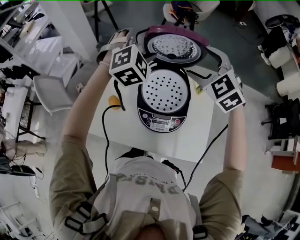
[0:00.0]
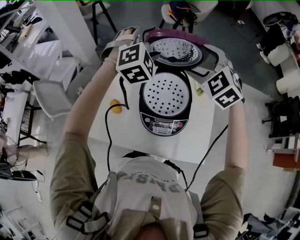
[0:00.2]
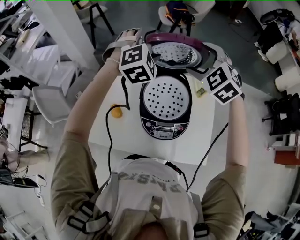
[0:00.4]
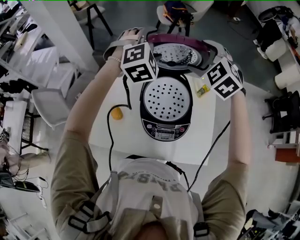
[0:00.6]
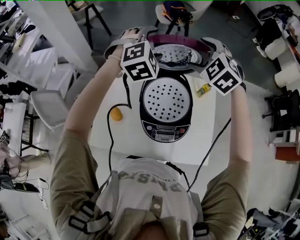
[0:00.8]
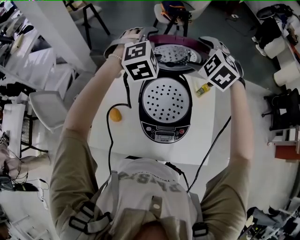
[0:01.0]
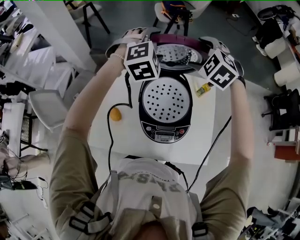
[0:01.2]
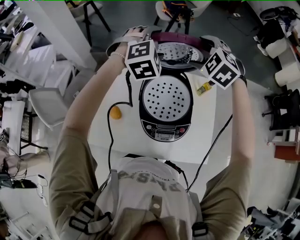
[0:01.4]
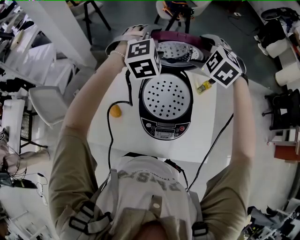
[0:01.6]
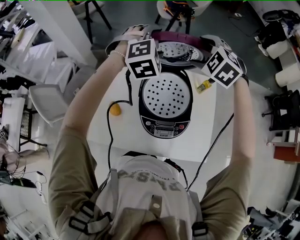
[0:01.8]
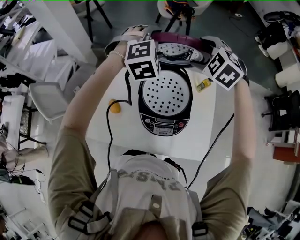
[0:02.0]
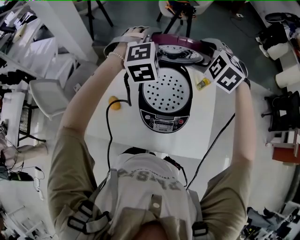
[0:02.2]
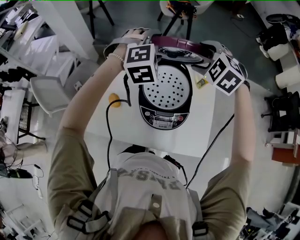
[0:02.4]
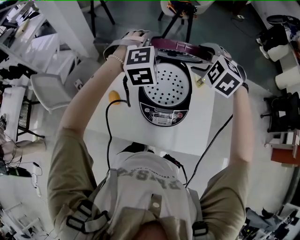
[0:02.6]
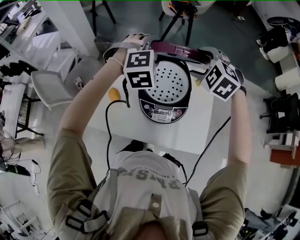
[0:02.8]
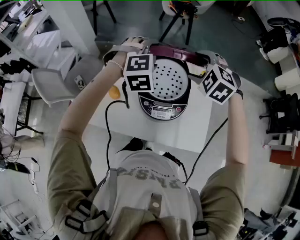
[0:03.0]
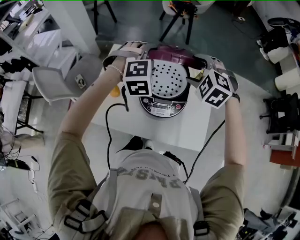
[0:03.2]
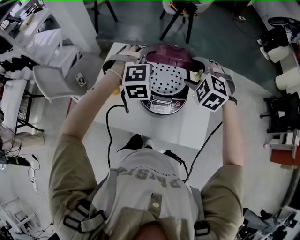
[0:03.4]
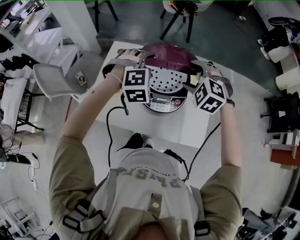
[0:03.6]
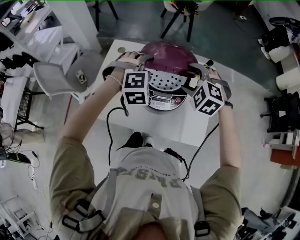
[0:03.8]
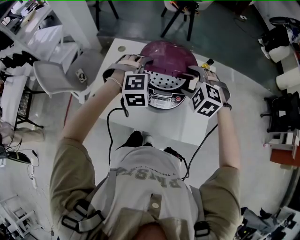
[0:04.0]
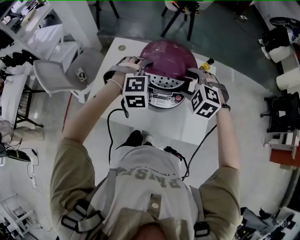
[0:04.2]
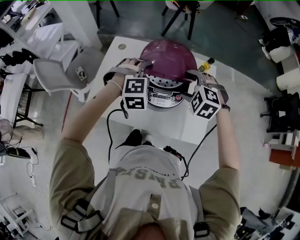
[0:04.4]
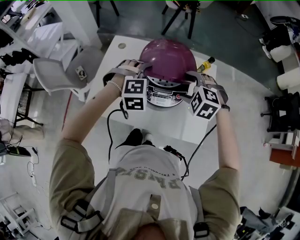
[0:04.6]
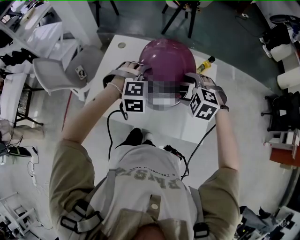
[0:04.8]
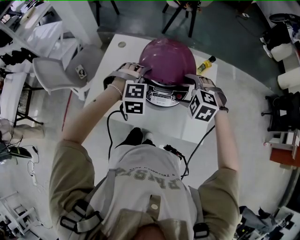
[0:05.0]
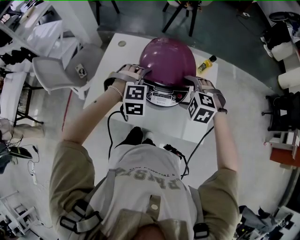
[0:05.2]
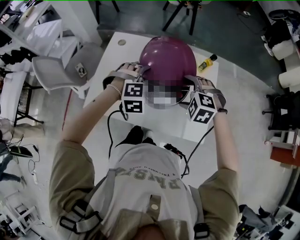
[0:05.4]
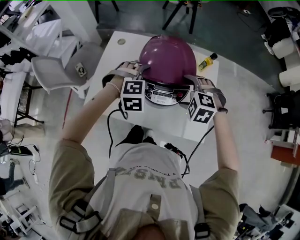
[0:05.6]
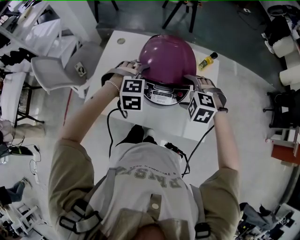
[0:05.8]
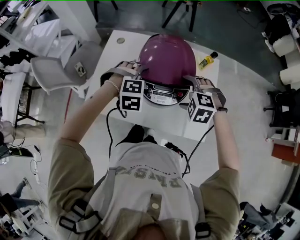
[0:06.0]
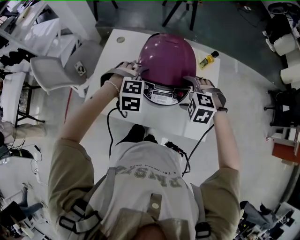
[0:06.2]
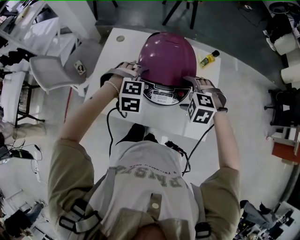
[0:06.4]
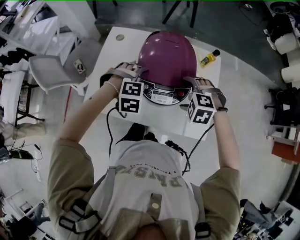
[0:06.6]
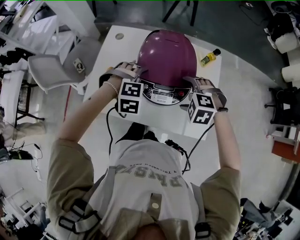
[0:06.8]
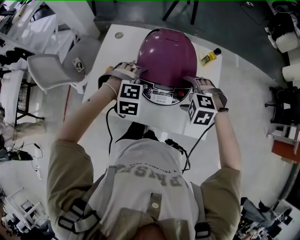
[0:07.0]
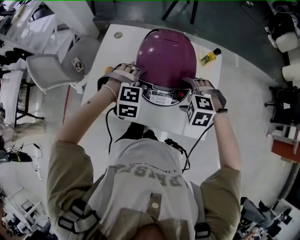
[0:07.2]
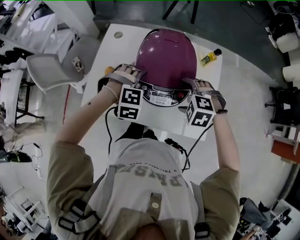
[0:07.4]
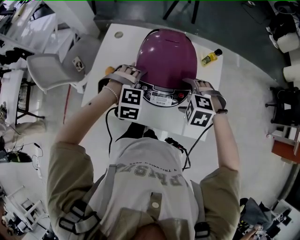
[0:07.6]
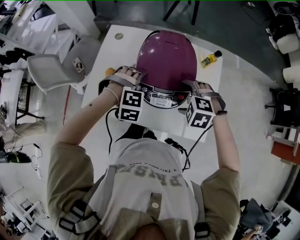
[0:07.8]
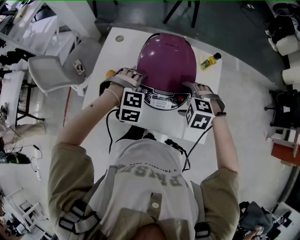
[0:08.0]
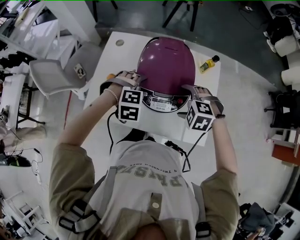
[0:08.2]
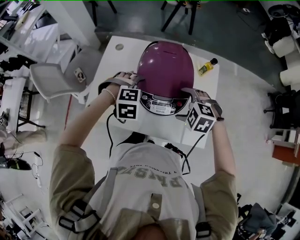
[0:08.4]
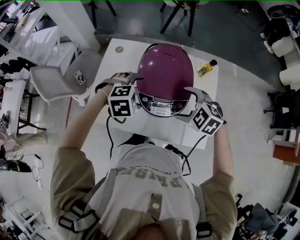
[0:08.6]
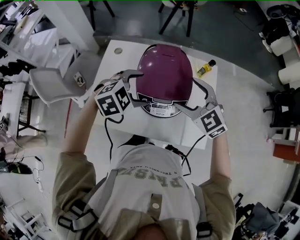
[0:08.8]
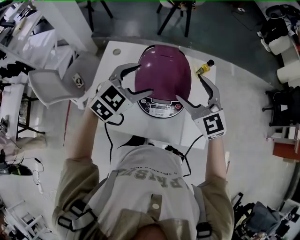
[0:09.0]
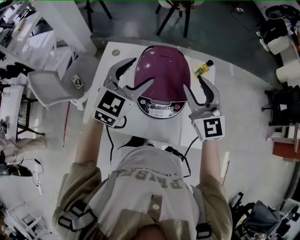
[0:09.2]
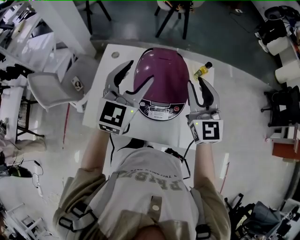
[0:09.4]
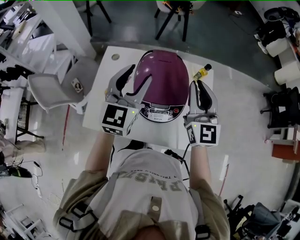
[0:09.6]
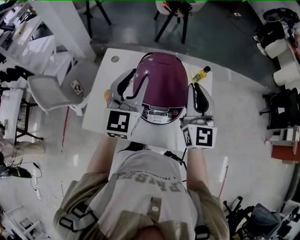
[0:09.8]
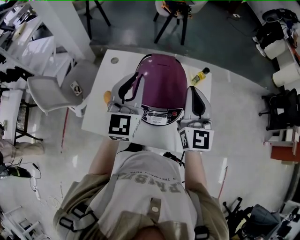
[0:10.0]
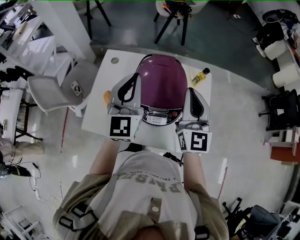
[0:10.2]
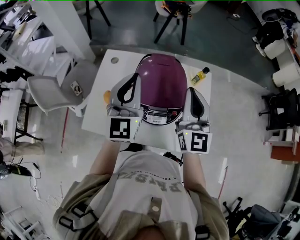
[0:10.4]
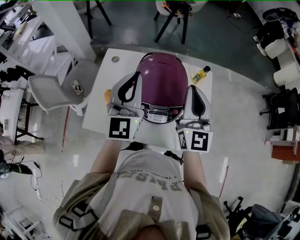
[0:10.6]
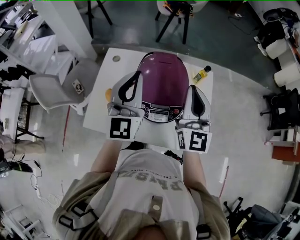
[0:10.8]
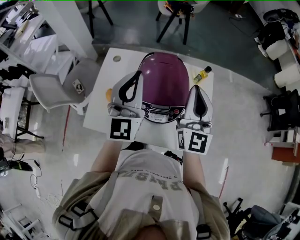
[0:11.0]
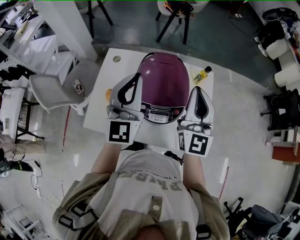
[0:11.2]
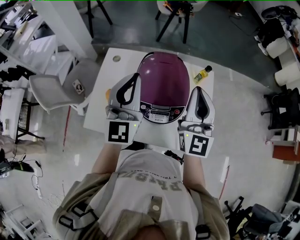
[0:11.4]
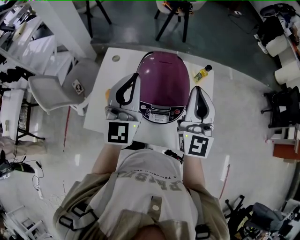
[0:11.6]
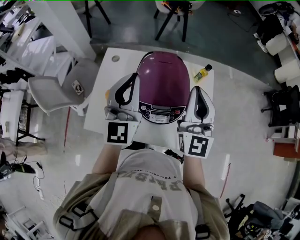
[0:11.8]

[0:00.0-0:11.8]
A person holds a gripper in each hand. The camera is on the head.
0:00.0 to 0:01.4: The two grippers go about 10 cm forward.
0:01.4 to 0:03.0: Both grippers travel together backward, approximately 15 cm.
0:03.0 to 0:04.4: The left gripper goes some 15 cm downward and backward. The right gripper heads backward and downward, covering roughly 15 cm.
0:04.4 to 0:06.0: The two grippers go approximately 5 cm downward.
0:06.0 to 0:07.4: The grippers move only a little.
0:07.4 to 0:08.8: The right gripper travels upward and forward by about 15 cm, and points its fingers approximately 40 degrees further upward, while the left gripper goes approximately 10 cm upward, and turns by approximately 40 degrees.
0:08.8 to 0:10.4: The grippers both shift upward by some 15 cm. The right gripper angles its fingers upward, by some 40 degrees, and closes its fingers. The left gripper angles its fingers upward, by roughly 60 degrees, and closes up.
0:10.4 to 0:11.8: The grippers make only small movements.

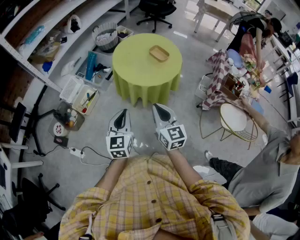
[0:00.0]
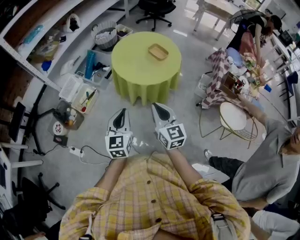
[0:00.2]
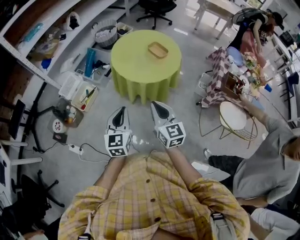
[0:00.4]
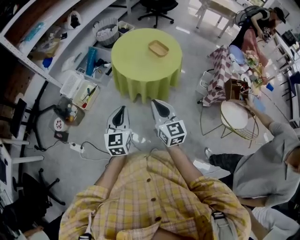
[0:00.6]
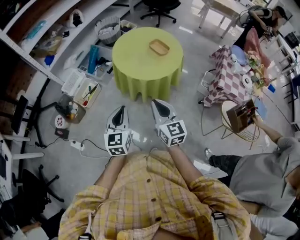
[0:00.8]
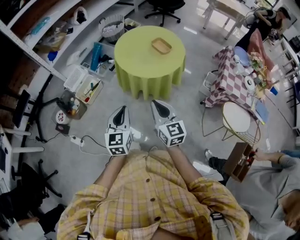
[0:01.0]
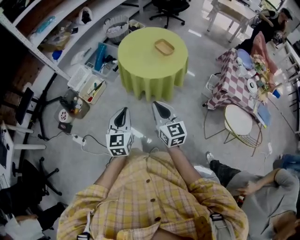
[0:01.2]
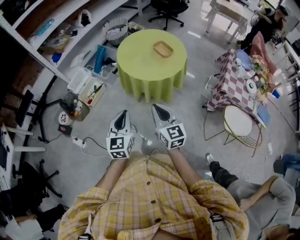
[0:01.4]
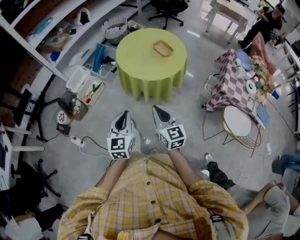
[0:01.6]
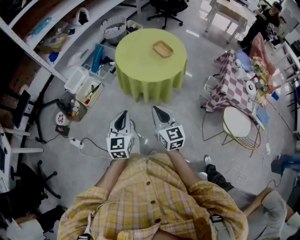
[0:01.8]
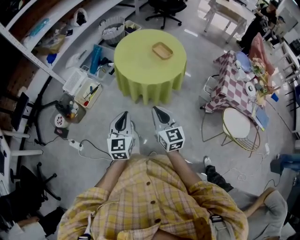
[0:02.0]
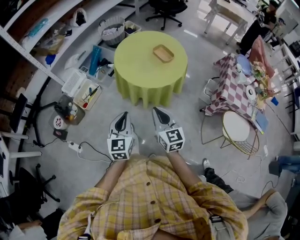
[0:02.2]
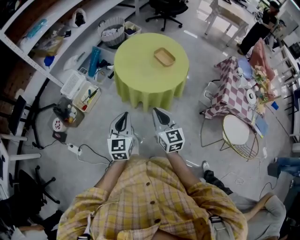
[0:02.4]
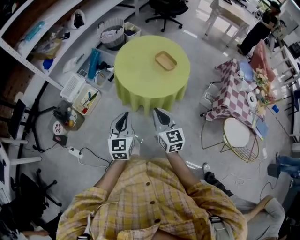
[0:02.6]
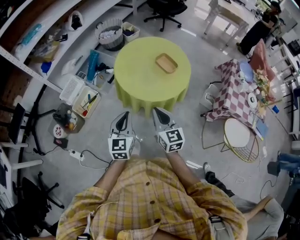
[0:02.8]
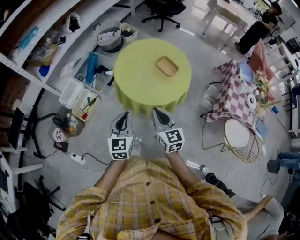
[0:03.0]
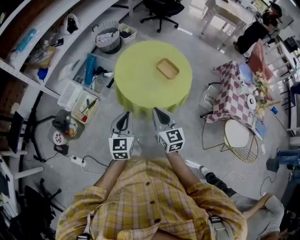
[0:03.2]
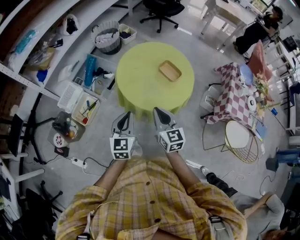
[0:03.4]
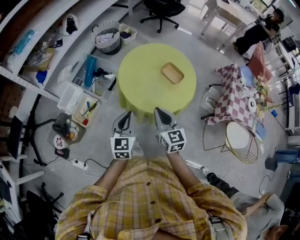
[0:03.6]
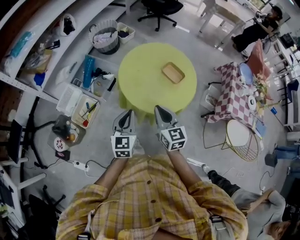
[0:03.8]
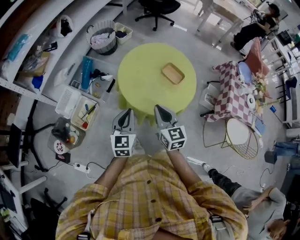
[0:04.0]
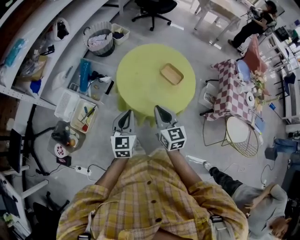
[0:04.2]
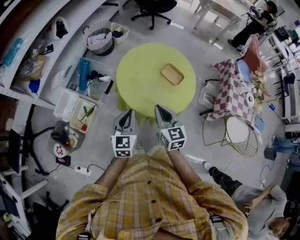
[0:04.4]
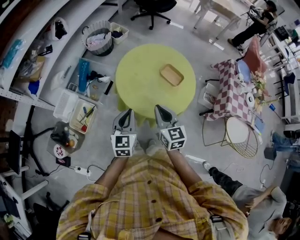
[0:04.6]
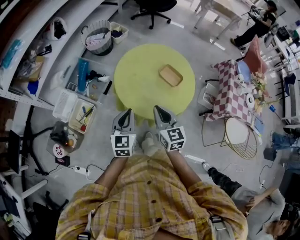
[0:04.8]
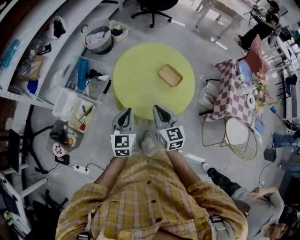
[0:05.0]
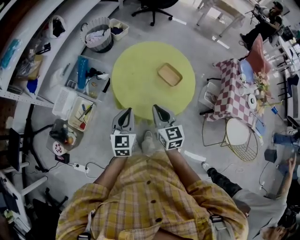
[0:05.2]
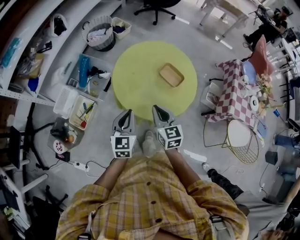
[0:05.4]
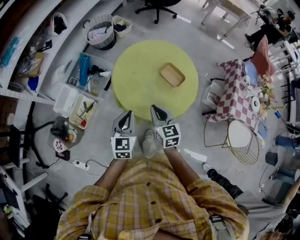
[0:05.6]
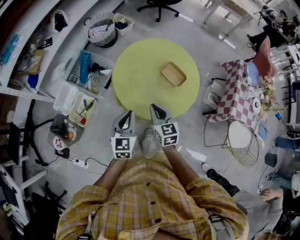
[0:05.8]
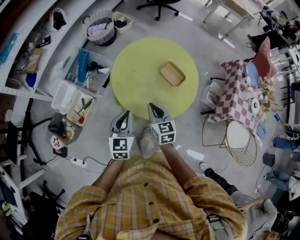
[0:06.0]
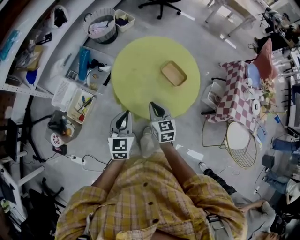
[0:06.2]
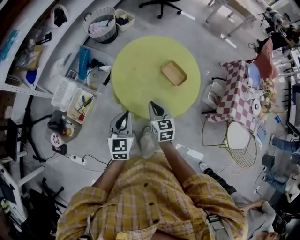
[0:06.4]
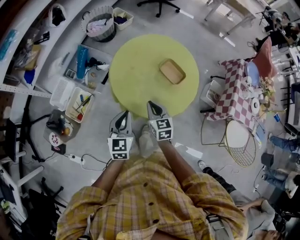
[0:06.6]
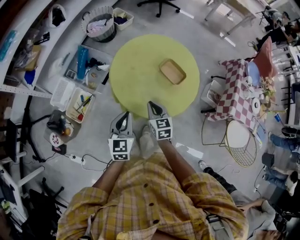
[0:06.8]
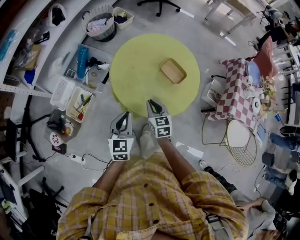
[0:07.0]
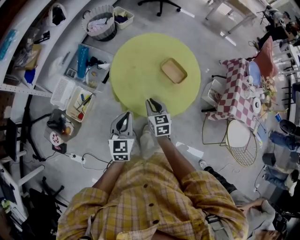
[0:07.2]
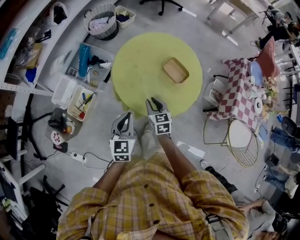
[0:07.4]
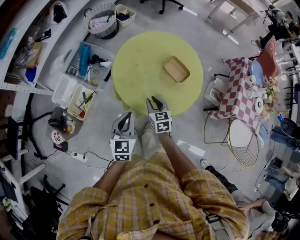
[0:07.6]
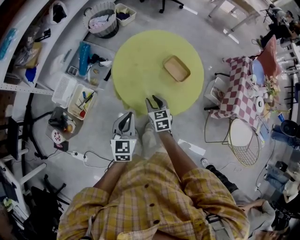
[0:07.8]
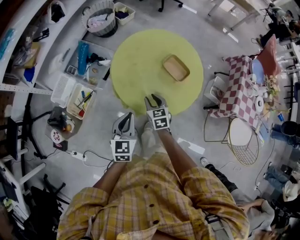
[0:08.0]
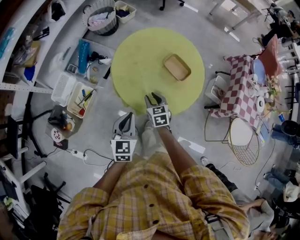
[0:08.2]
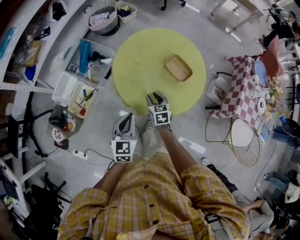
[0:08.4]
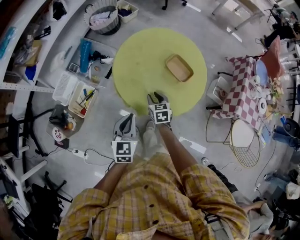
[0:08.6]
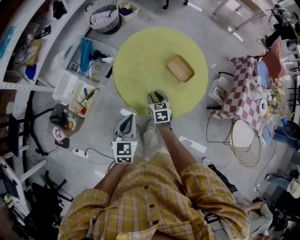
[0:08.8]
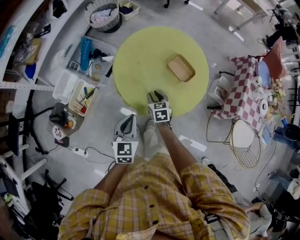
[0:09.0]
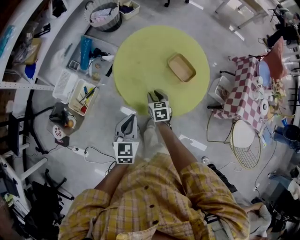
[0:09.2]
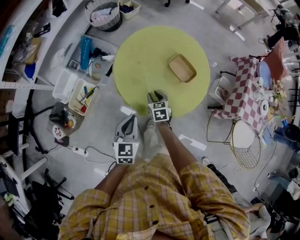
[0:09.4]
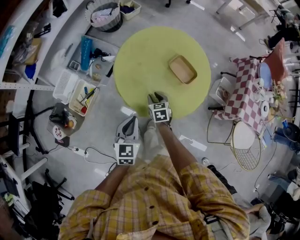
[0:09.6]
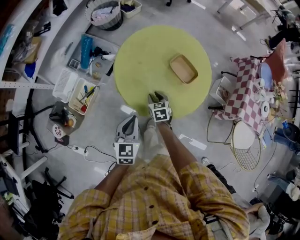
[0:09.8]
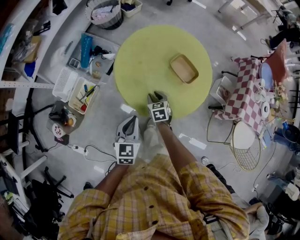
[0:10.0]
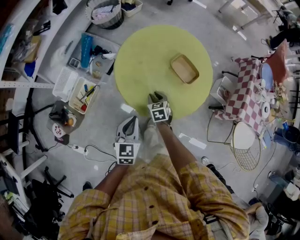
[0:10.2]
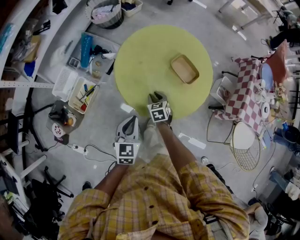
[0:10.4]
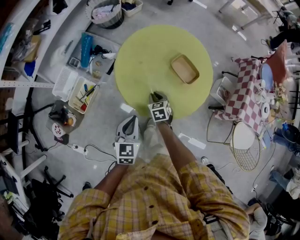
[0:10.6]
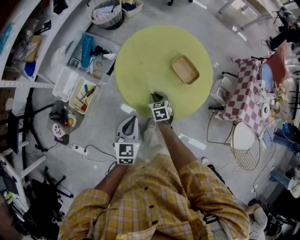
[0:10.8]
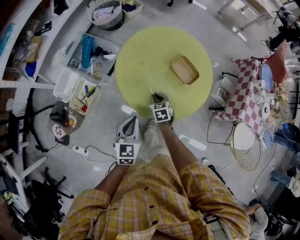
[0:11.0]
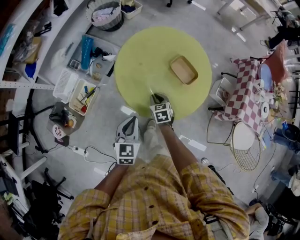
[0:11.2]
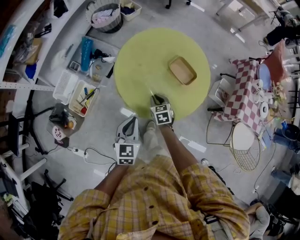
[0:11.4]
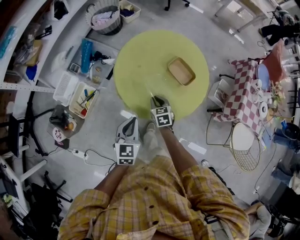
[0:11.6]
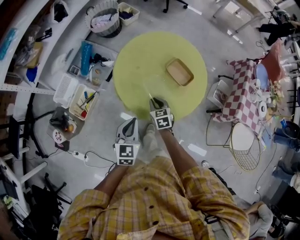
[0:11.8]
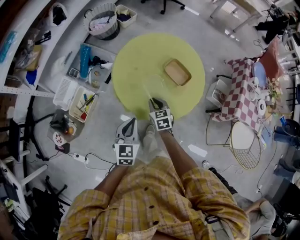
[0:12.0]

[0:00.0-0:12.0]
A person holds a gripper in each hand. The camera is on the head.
0:00.0 to 0:01.6: The right gripper ends up approximately 5 cm from where it was. The left gripper goes some 5 cm backward.
0:01.6 to 0:03.0: The two grippers go roughly 25 cm forward.
0:03.0 to 0:04.4: The two grippers go approximately 15 cm forward and to the left.
0:04.4 to 0:06.0: The right gripper goes some 10 cm downward and forward, while the left gripper ends up about 5 cm from where it was.
0:06.0 to 0:07.6: The right gripper is displaced downward by some 10 cm, and opens.
0:07.6 to 0:09.0: The right gripper is displaced downward by about 10 cm.
0:09.0 to 0:10.4: There are only small adjustments of the grippers.
0:10.4 to 0:12.0: The right gripper heads upward, covering approximately 5 cm.
